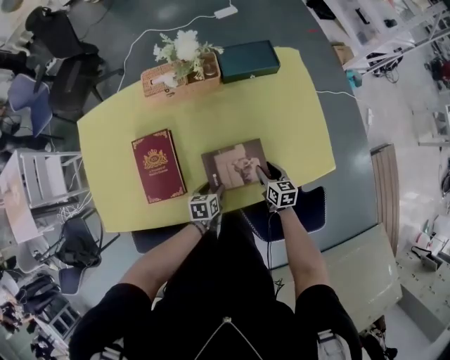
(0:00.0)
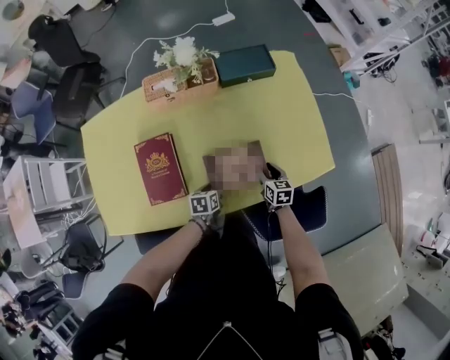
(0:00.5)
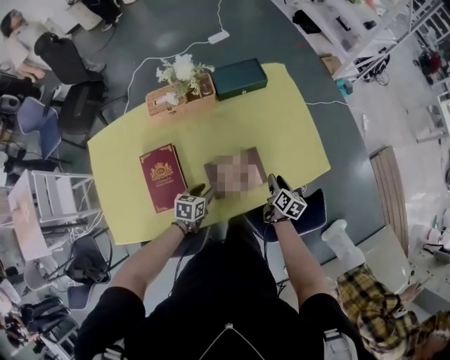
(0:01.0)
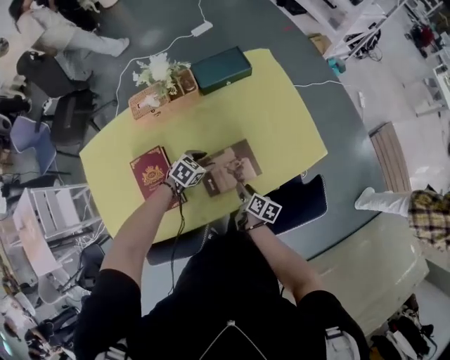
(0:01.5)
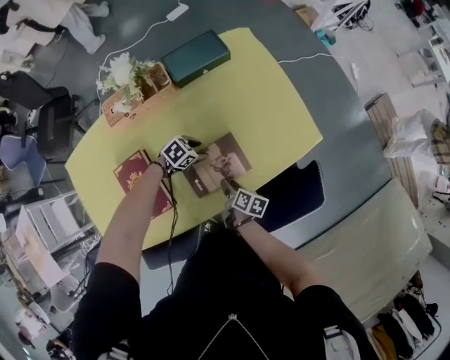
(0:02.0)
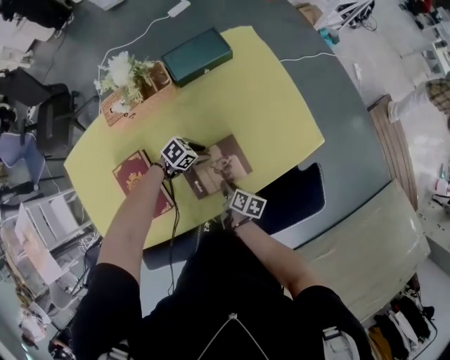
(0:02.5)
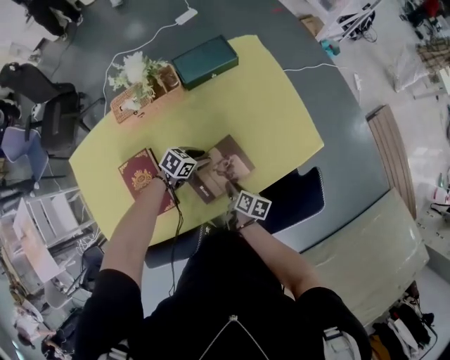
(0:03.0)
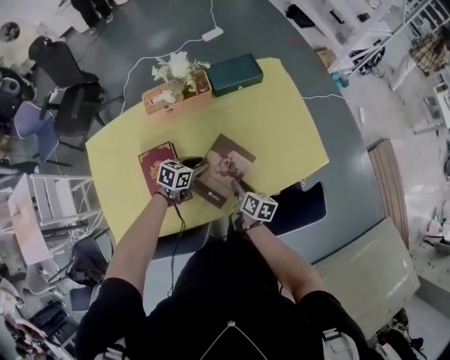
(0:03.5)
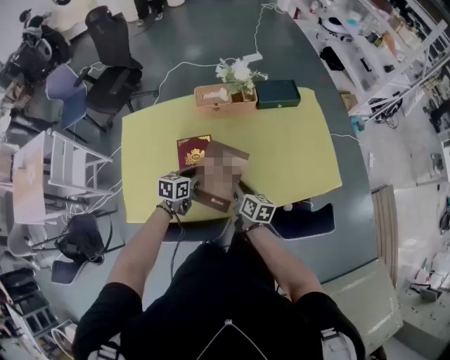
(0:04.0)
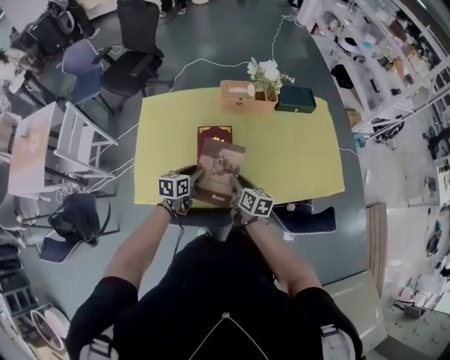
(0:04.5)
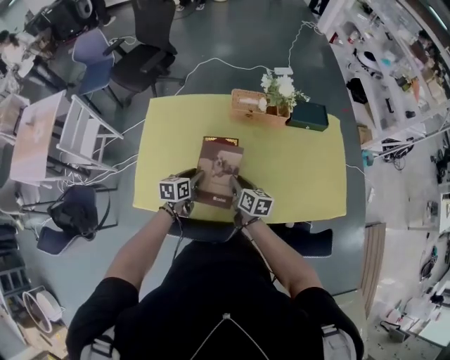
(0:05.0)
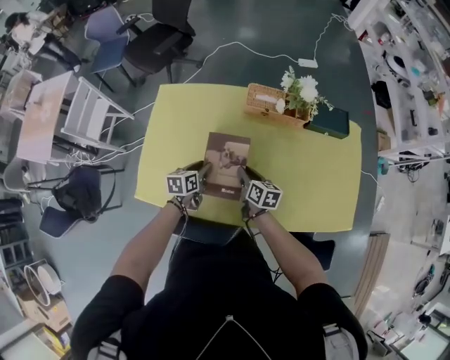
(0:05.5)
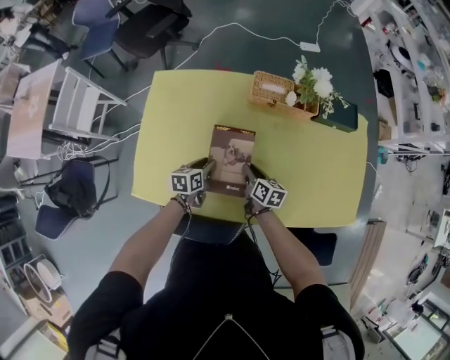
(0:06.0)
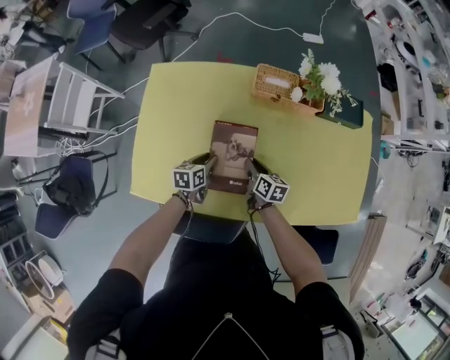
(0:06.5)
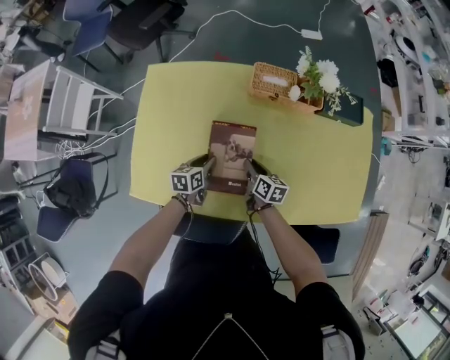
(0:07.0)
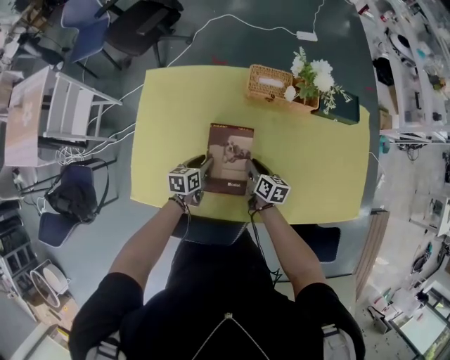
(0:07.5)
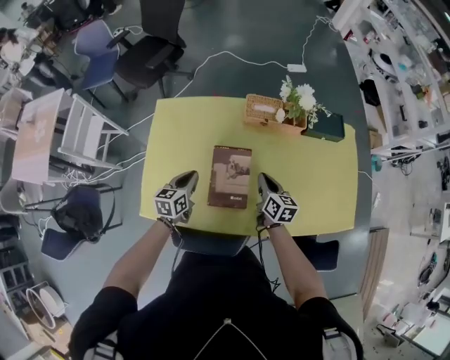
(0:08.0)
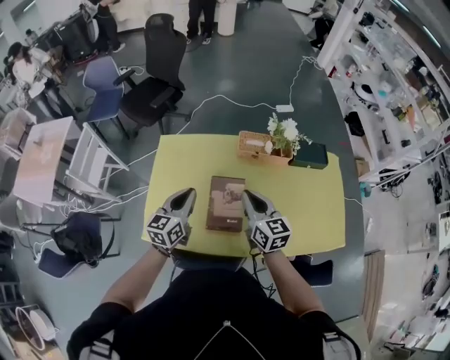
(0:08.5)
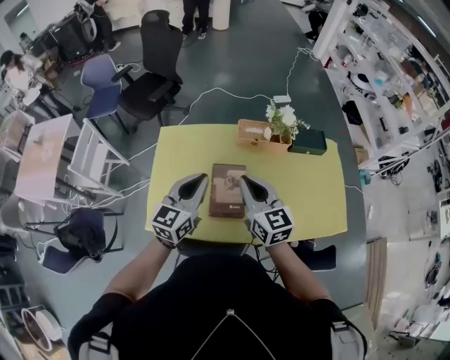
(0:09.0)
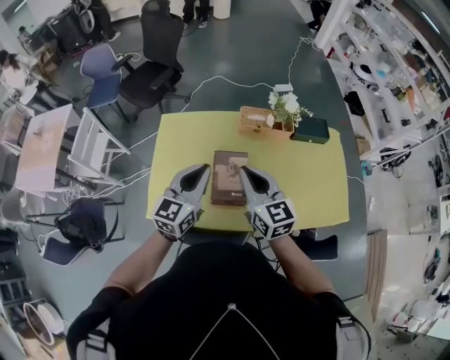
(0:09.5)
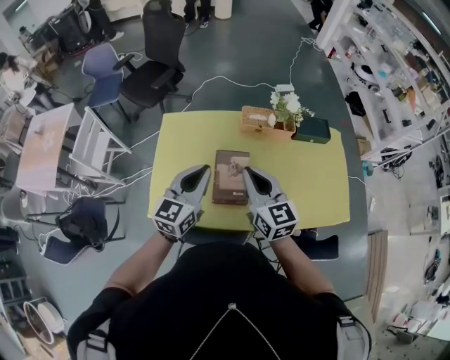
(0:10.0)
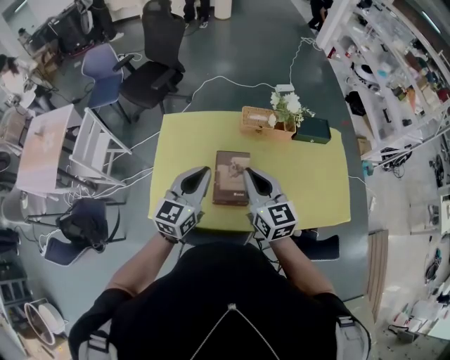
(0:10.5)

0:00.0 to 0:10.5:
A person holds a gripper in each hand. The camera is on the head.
0:00.0 to 0:02.0: The right gripper moves roughly 10 cm, and twists approximately 50 degrees clockwise, seen from behind, while the left gripper ends up about 15 cm from where it was, and rolls clockwise, seen from behind, by some 60 degrees.
0:02.0 to 0:04.0: The left gripper ends up about 35 cm from where it was, and changes its angle by roughly 60 degrees, while the right gripper goes roughly 20 cm upward, and turns by about 40 degrees.
0:04.0 to 0:06.5: The right gripper heads forward, downward and to the left, covering approximately 20 cm, while the left gripper goes roughly 20 cm downward, to the left and forward, and changes its angle by roughly 30 degrees.
0:06.5 to 0:08.5: The grippers both shift upward by about 35 cm. The right gripper swivels roughly 40 degrees. Meanwhile the left gripper turns by approximately 40 degrees, and closes.
0:08.5 to 0:10.5: Both grippers travel together upward and backward, approximately 10 cm.

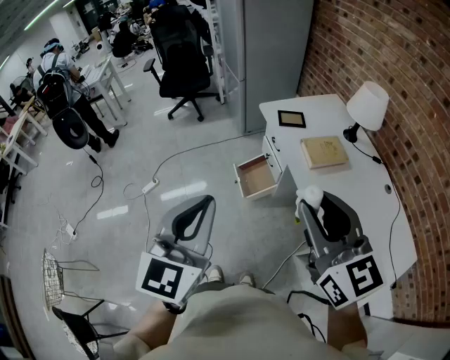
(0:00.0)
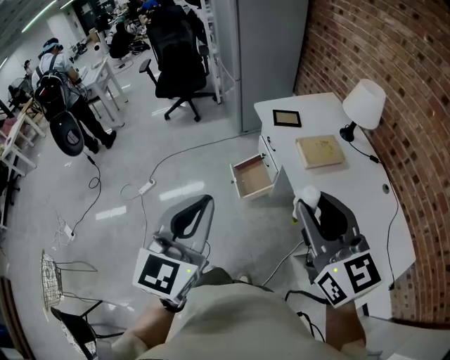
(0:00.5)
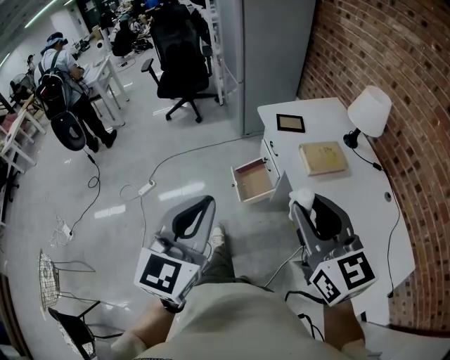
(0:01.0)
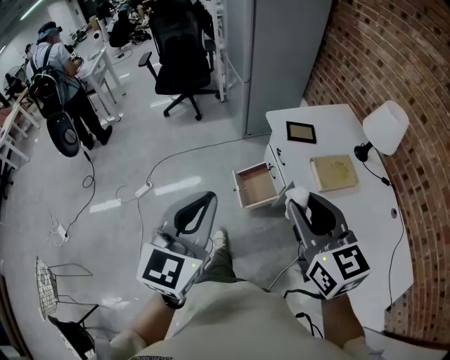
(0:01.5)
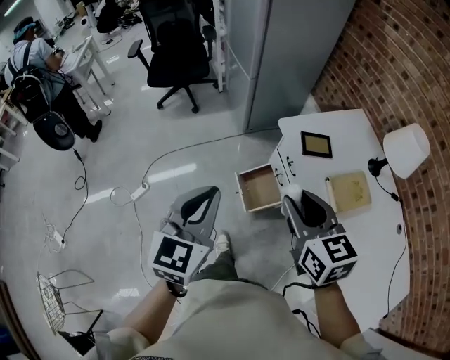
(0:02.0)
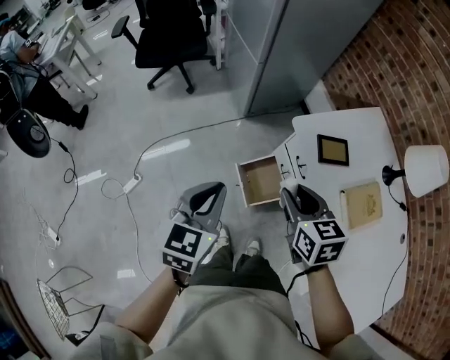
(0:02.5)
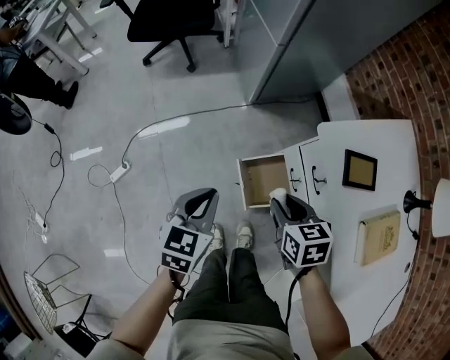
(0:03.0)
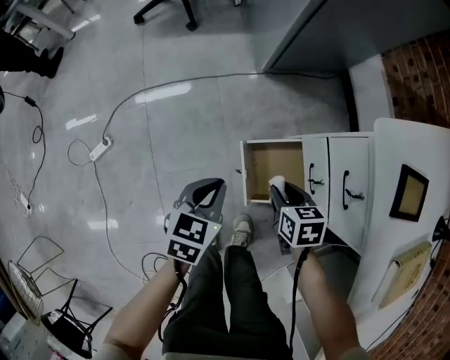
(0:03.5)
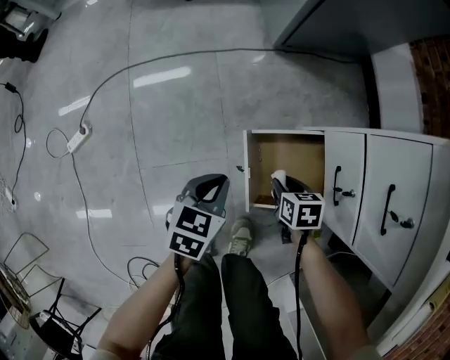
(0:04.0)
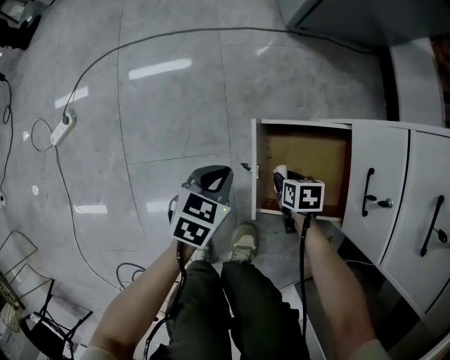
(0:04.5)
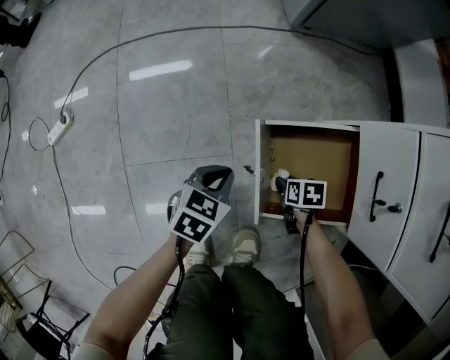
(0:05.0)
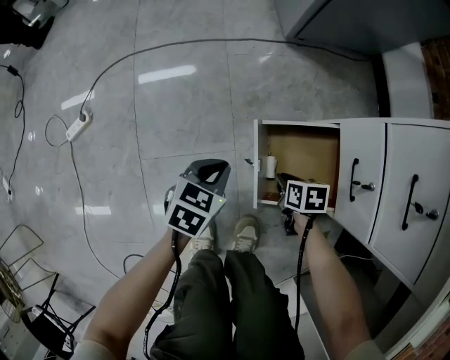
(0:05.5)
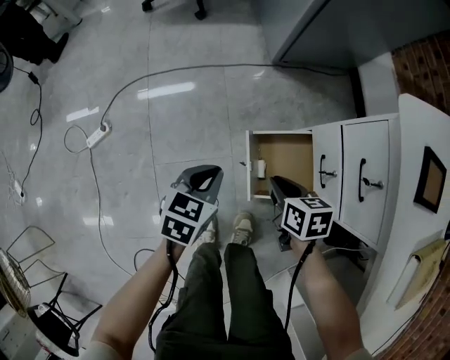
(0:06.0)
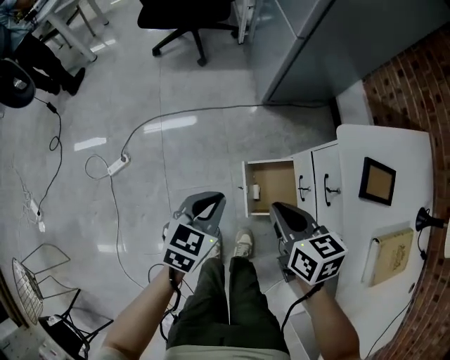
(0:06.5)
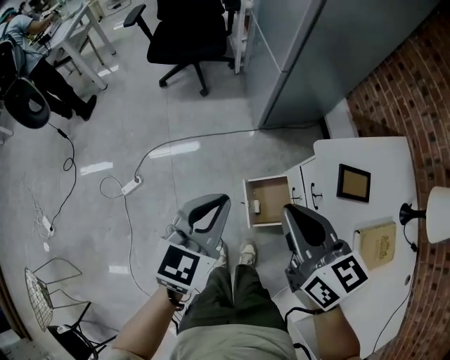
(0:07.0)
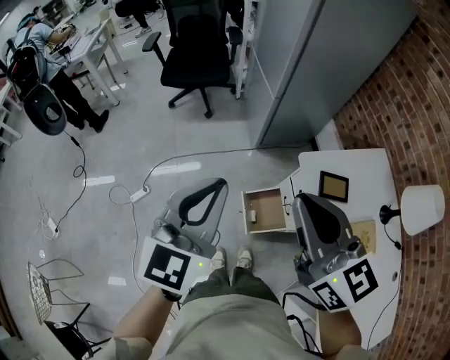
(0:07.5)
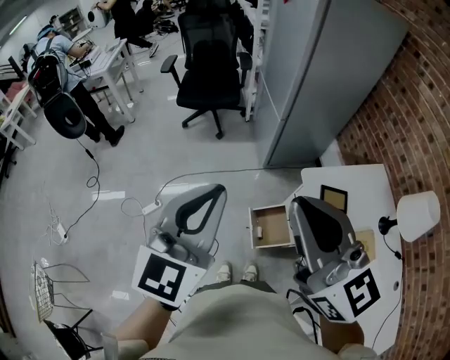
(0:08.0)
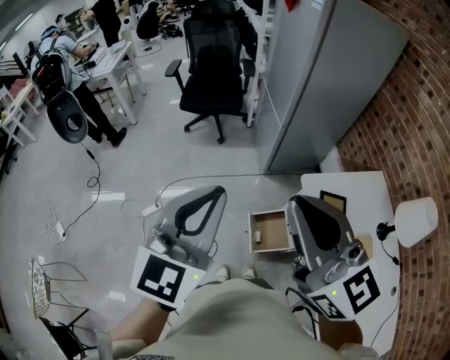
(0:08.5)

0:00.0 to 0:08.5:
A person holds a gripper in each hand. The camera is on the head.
0:00.0 to 0:02.0: The left gripper goes approximately 30 cm forward, while the right gripper heads forward and downward, covering about 35 cm, and rotates some 20 degrees.
0:02.0 to 0:04.0: The two grippers go approximately 80 cm downward. The left gripper rotates about 40 degrees; the right gripper angles its fingers downward, by approximately 40 degrees.
0:04.0 to 0:06.5: The grippers both shift upward by approximately 40 cm. The right gripper turns by about 30 degrees, and closes.
0:06.5 to 0:08.5: The grippers both shift upward by roughly 50 cm. The left gripper tilts its fingers approximately 40 degrees upward. The right gripper tilts its fingers approximately 40 degrees upward.

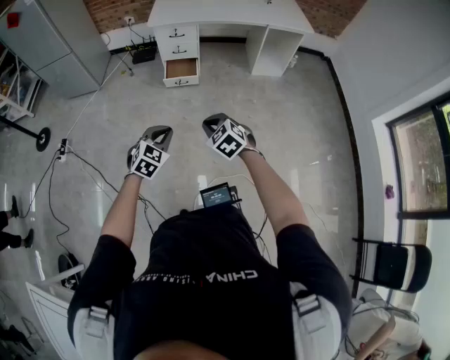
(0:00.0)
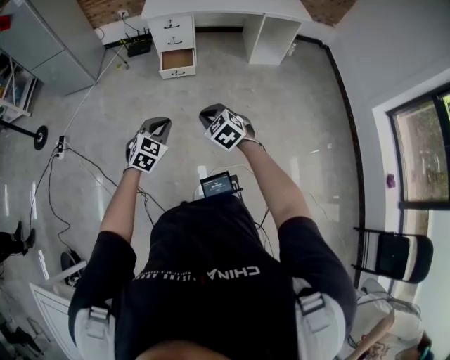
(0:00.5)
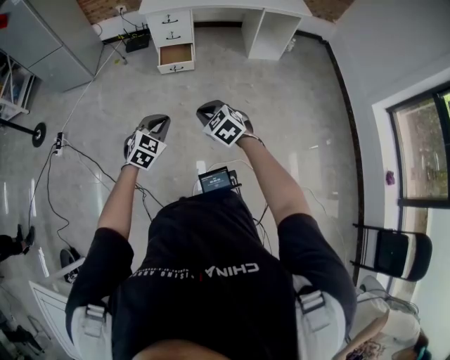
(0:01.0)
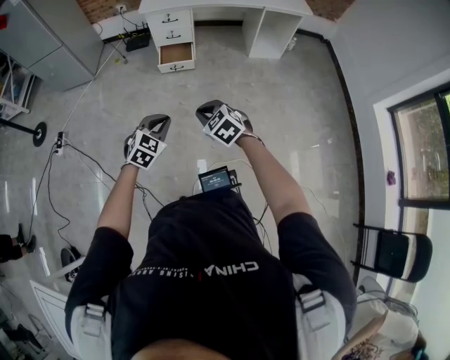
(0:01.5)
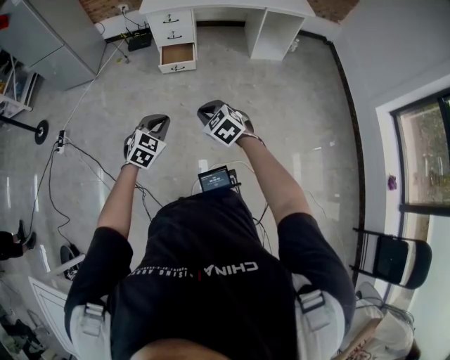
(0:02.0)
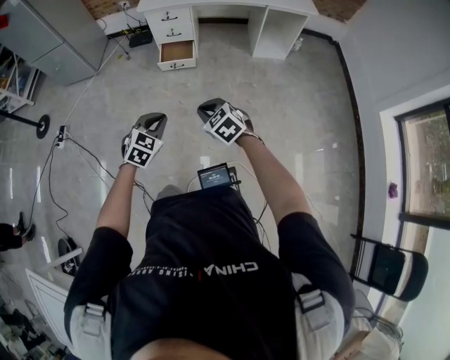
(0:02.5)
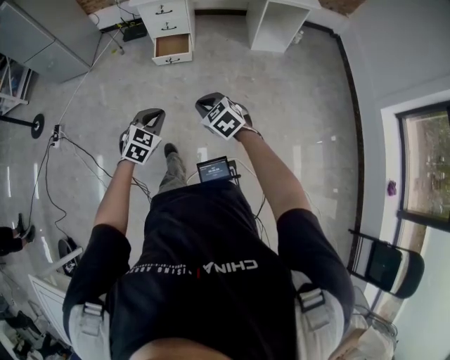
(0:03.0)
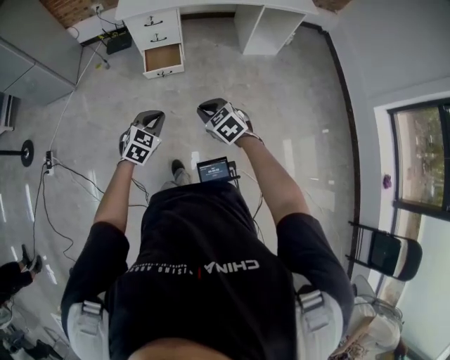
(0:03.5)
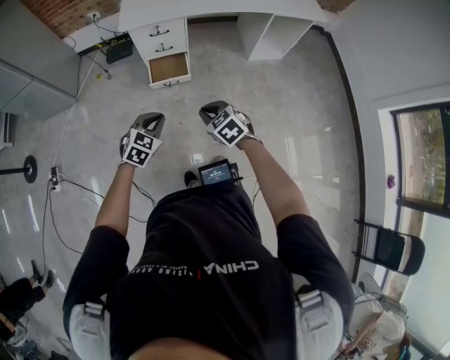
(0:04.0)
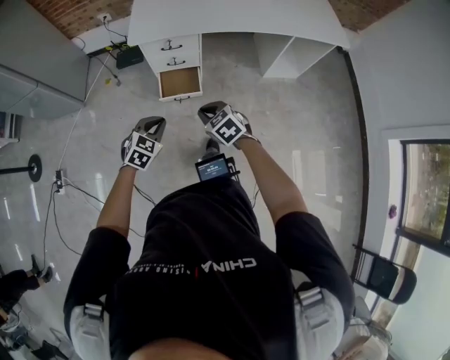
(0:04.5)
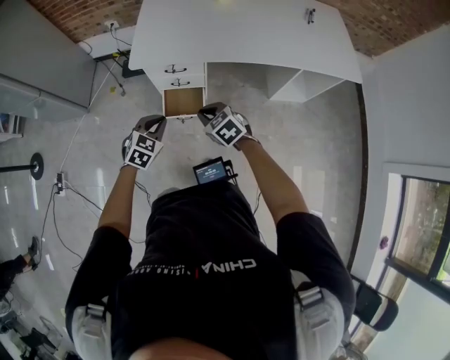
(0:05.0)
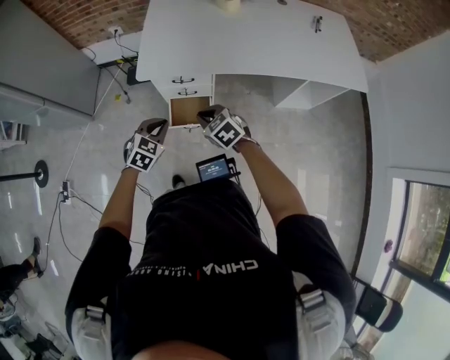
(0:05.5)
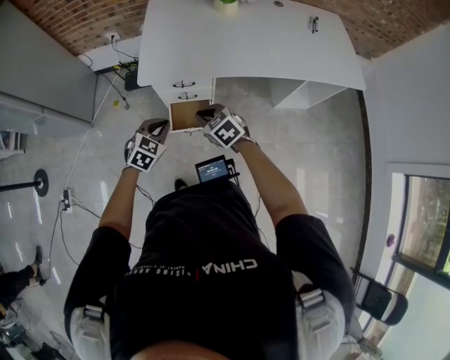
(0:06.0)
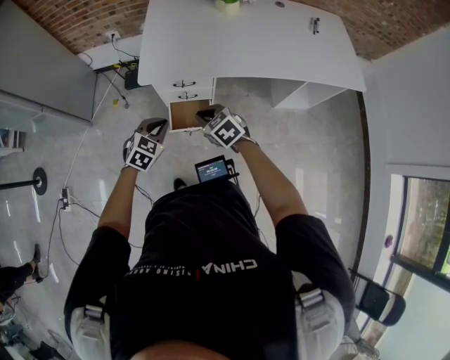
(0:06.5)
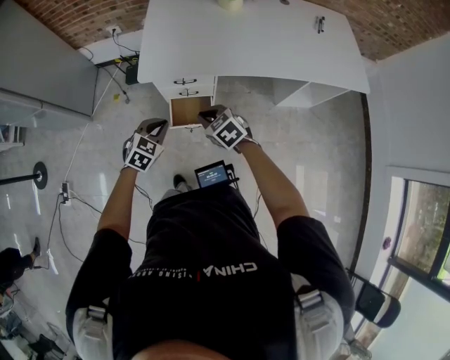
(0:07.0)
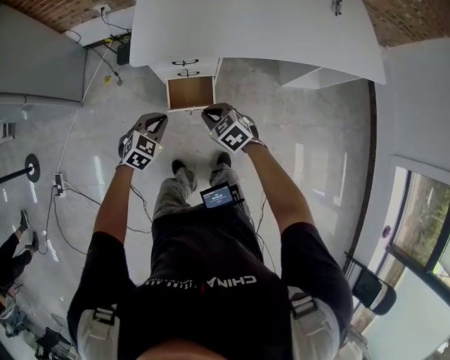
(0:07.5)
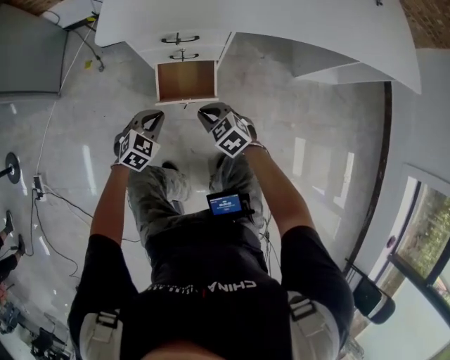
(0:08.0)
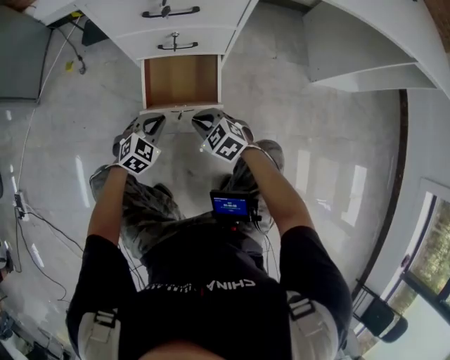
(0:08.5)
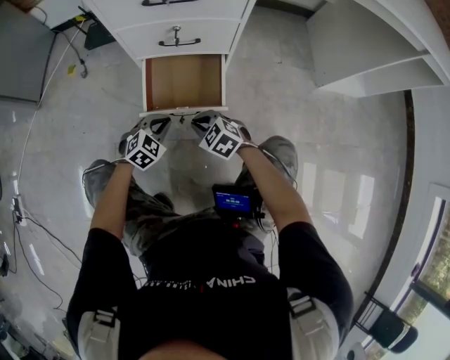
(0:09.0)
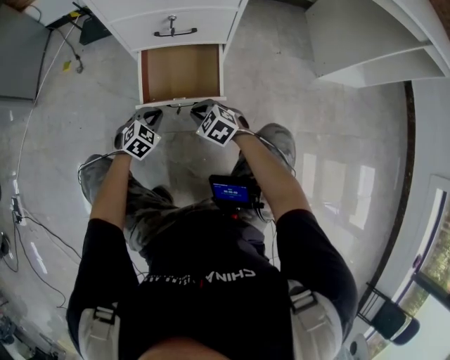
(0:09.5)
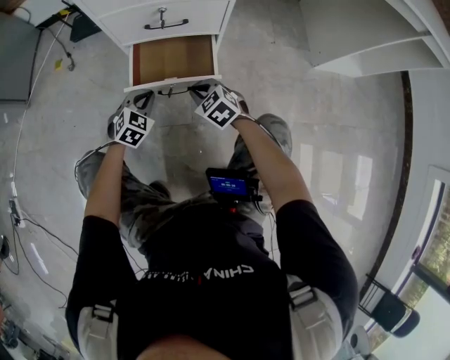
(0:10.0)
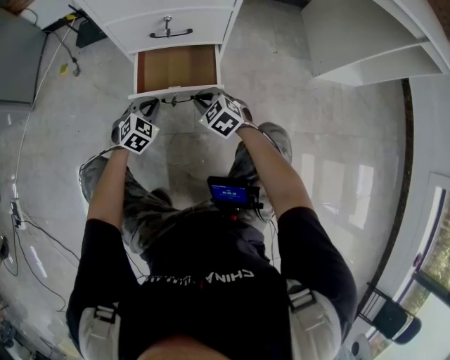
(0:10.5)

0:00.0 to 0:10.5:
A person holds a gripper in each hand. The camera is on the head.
0:00.0 to 0:02.0: The grippers make only small movements.
0:02.0 to 0:04.0: The two grippers go about 35 cm forward.
0:04.0 to 0:06.5: The two grippers go approximately 40 cm forward.
0:06.5 to 0:08.5: Both grippers travel together downward, about 60 cm.
0:08.5 to 0:10.5: The grippers both shift downward by about 10 cm.
